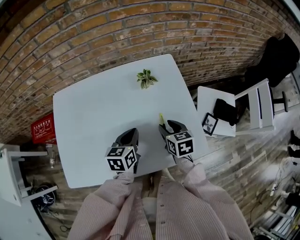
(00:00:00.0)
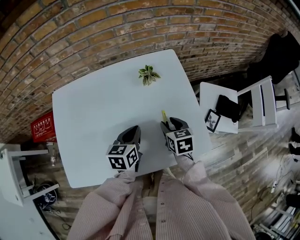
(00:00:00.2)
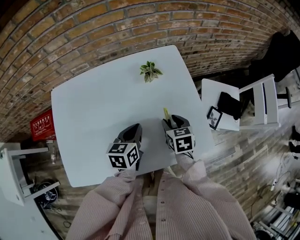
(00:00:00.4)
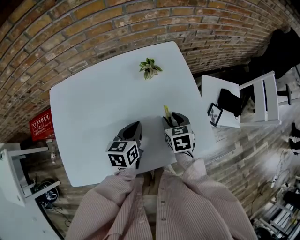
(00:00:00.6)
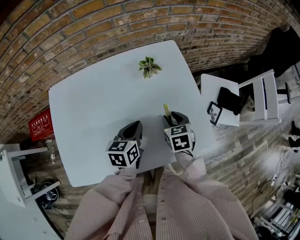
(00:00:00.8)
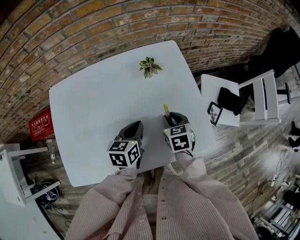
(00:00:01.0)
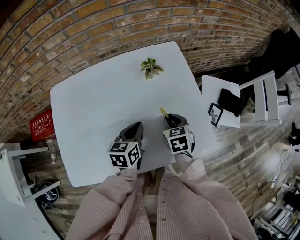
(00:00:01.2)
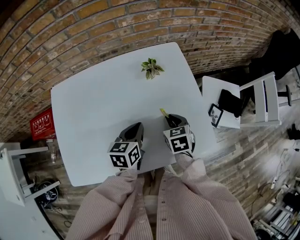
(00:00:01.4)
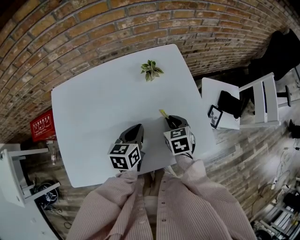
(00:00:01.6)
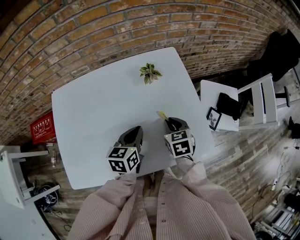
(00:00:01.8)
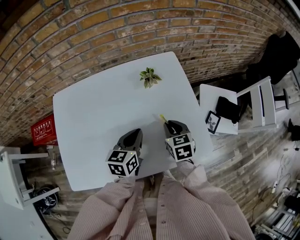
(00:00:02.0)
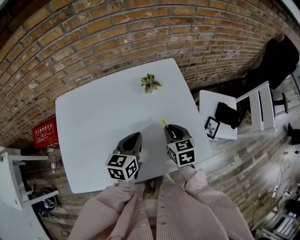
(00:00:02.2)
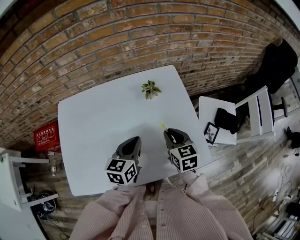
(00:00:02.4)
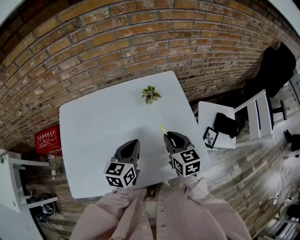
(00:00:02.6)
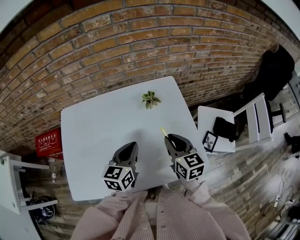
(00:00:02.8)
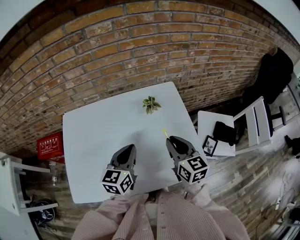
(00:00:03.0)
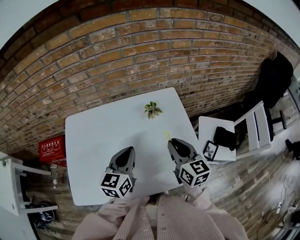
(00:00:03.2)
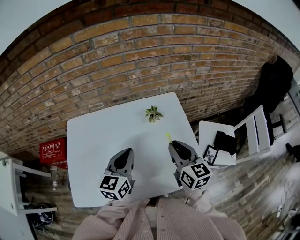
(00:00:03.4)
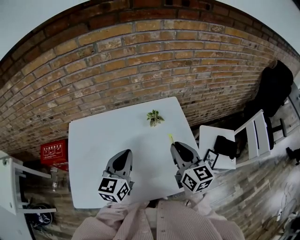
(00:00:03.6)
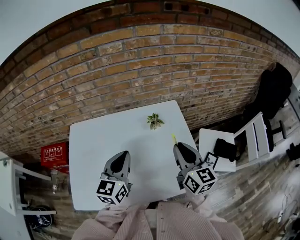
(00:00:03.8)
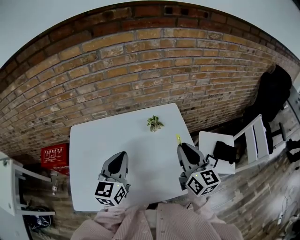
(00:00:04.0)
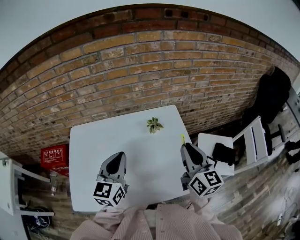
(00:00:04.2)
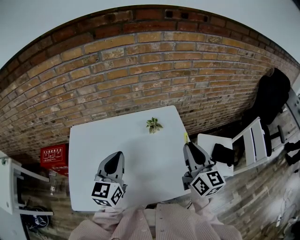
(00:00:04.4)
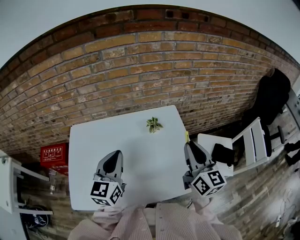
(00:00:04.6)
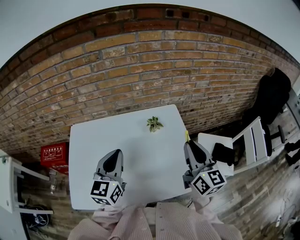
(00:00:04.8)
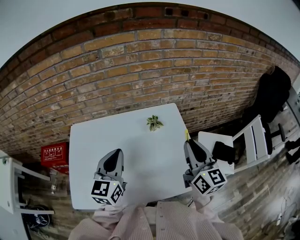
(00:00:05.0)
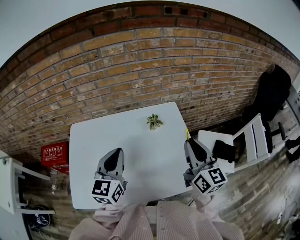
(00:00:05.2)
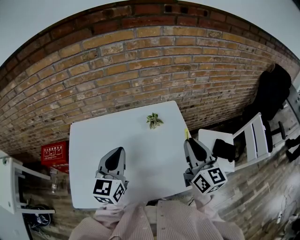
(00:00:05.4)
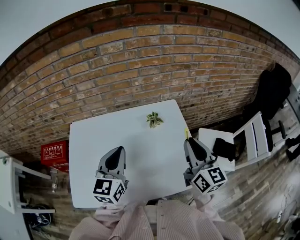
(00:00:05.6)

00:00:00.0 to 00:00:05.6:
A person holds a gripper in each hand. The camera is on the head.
00:00:00.0 to 00:00:01.4: The right gripper closes its fingers.
00:00:01.4 to 00:00:02.8: Both grippers travel together upward, approximately 10 cm. The right gripper swivels roughly 30 degrees.
00:00:02.8 to 00:00:04.2: The right gripper heads upward and to the right, covering some 15 cm, and rotates approximately 20 degrees. The left gripper heads upward, covering roughly 10 cm.
00:00:04.2 to 00:00:05.6: The grippers make only small movements.

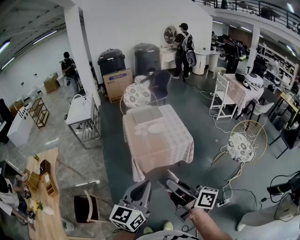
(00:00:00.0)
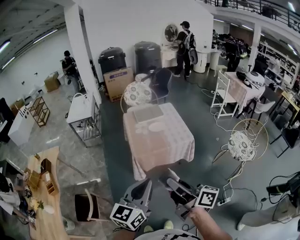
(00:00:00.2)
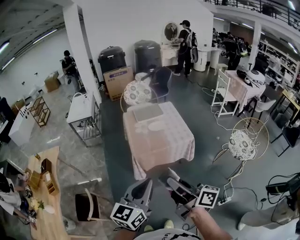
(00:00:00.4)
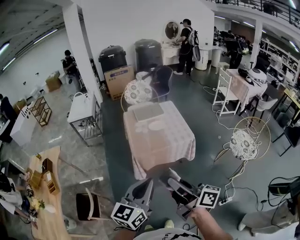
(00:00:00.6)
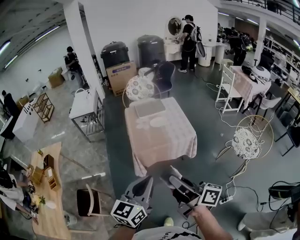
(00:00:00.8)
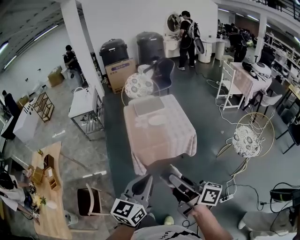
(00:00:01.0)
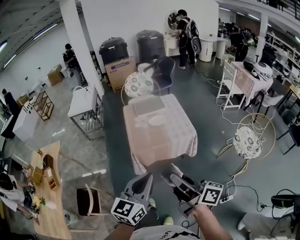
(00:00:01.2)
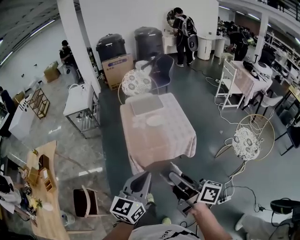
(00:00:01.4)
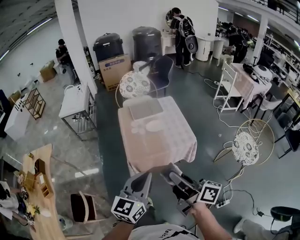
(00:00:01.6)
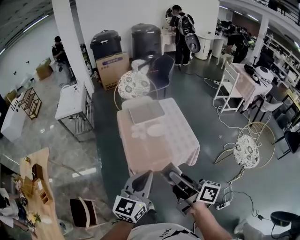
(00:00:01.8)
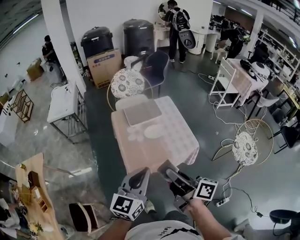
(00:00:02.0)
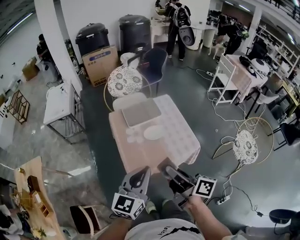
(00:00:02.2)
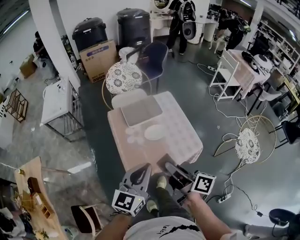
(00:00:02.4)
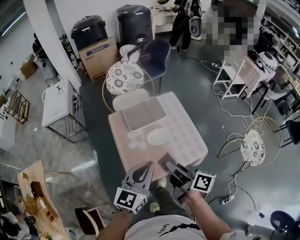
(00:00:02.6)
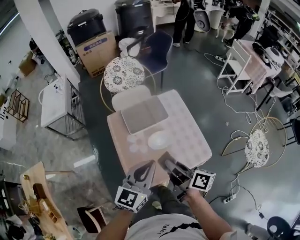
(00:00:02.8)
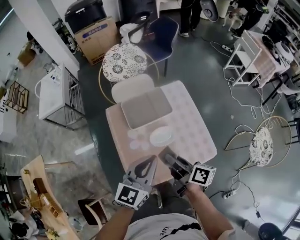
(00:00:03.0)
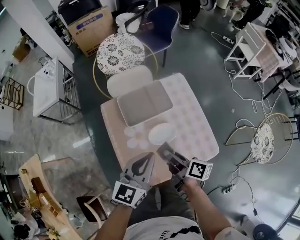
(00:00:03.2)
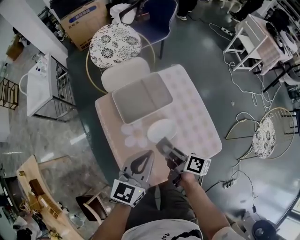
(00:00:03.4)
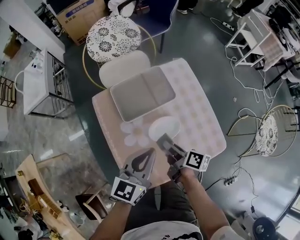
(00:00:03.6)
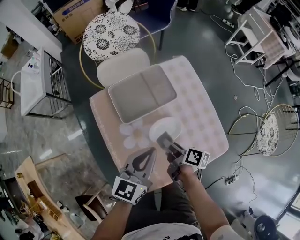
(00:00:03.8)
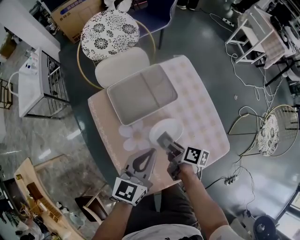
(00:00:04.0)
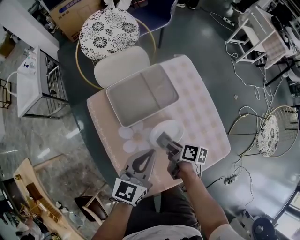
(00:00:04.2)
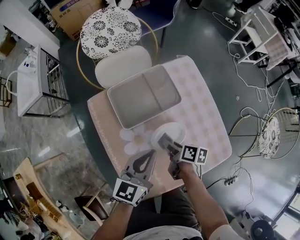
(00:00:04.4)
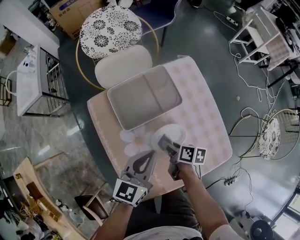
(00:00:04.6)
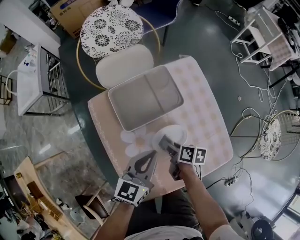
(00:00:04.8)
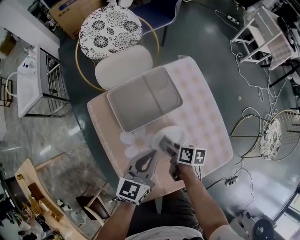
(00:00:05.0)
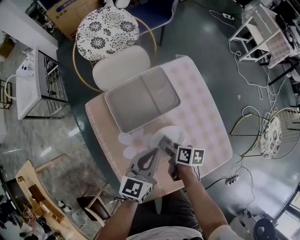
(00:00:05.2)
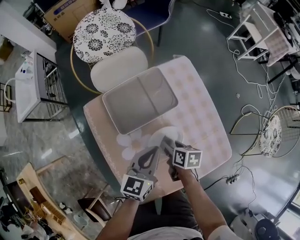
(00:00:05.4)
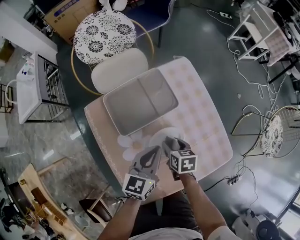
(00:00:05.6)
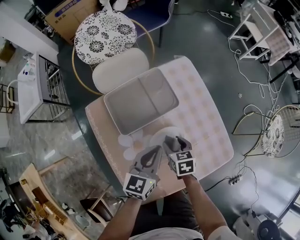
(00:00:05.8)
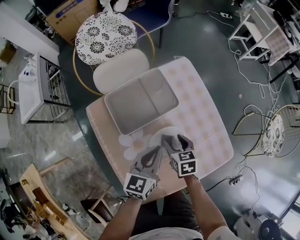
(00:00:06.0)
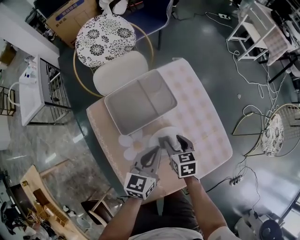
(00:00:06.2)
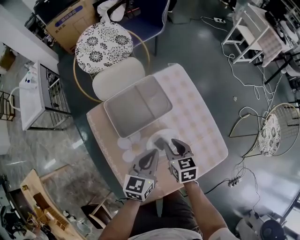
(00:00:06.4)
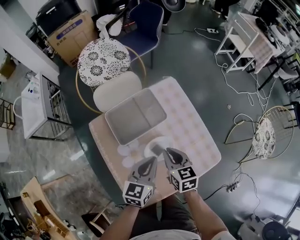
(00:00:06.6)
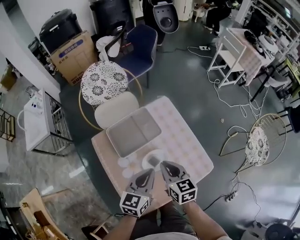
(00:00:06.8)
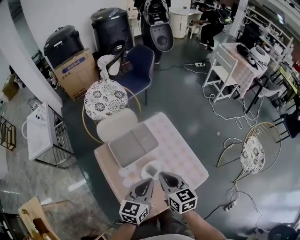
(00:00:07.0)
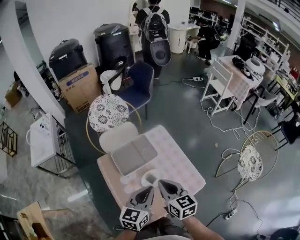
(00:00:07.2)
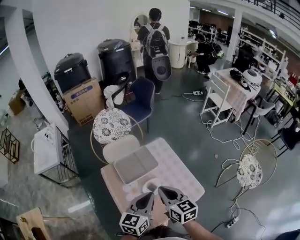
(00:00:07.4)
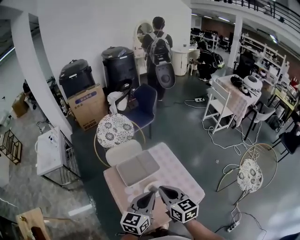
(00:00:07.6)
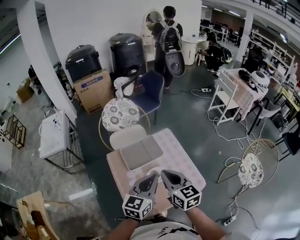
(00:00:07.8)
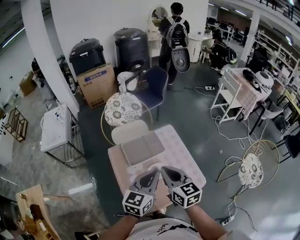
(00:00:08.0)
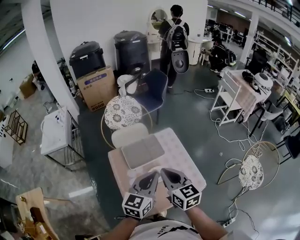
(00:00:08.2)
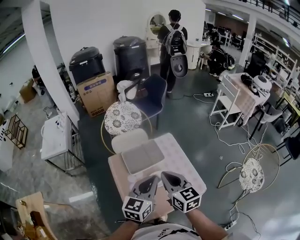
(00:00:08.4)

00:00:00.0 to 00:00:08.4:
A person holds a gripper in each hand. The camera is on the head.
00:00:00.0 to 00:00:01.4: The grippers both shift forward and to the right by about 10 cm.
00:00:01.4 to 00:00:02.8: The two grippers travel together, forward, some 40 cm.
00:00:02.8 to 00:00:04.2: Both grippers travel together downward and forward, about 30 cm. The right gripper turns by roughly 30 degrees.
00:00:04.2 to 00:00:05.6: The right gripper swivels about 40 degrees, and opens its fingers, while the left gripper heads downward, covering some 5 cm.
00:00:05.6 to 00:00:07.0: The right gripper travels upward by some 30 cm, turns by approximately 30 degrees, and closes up. The left gripper goes some 15 cm upward.
00:00:07.0 to 00:00:08.4: The grippers both shift upward by some 15 cm.

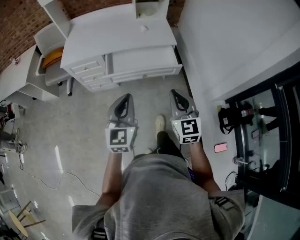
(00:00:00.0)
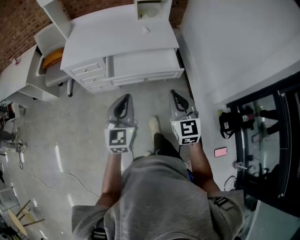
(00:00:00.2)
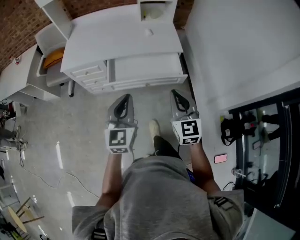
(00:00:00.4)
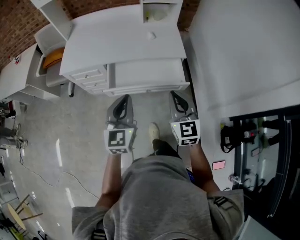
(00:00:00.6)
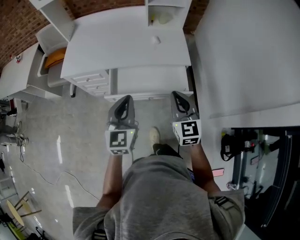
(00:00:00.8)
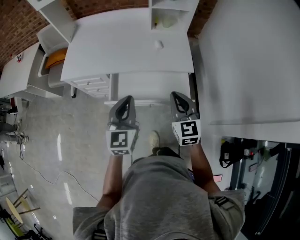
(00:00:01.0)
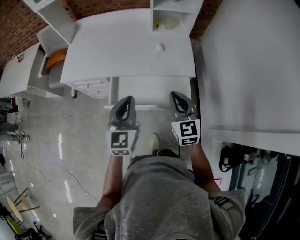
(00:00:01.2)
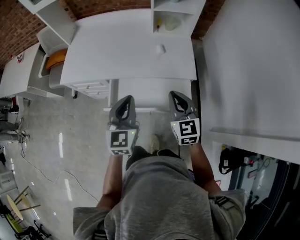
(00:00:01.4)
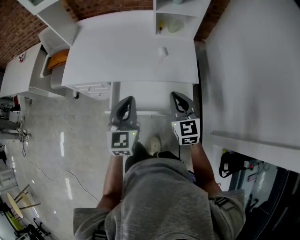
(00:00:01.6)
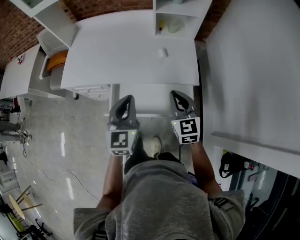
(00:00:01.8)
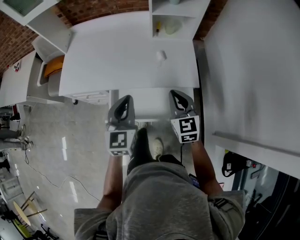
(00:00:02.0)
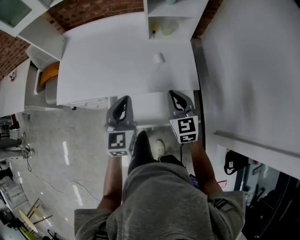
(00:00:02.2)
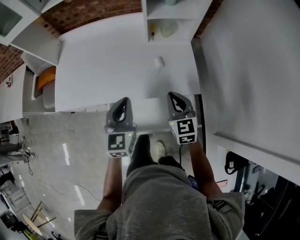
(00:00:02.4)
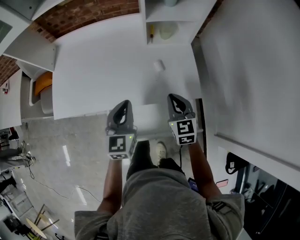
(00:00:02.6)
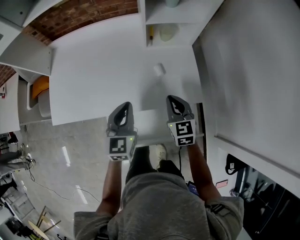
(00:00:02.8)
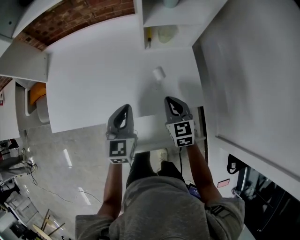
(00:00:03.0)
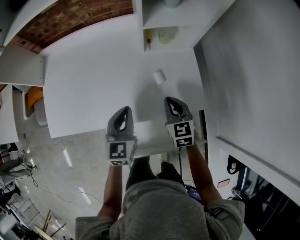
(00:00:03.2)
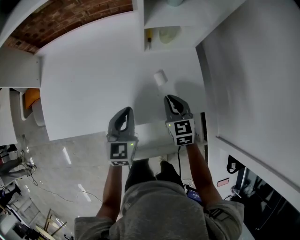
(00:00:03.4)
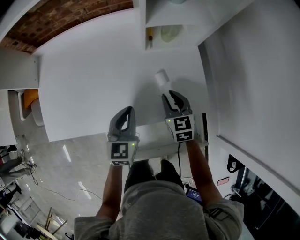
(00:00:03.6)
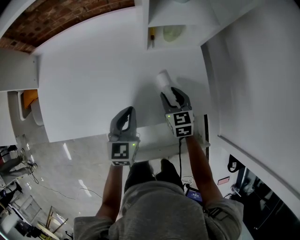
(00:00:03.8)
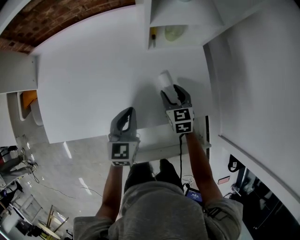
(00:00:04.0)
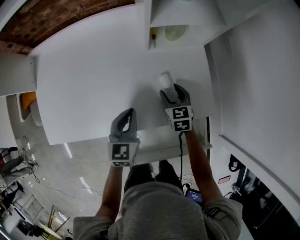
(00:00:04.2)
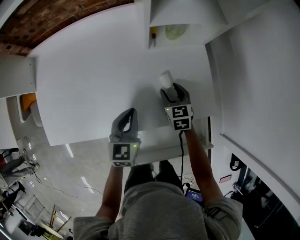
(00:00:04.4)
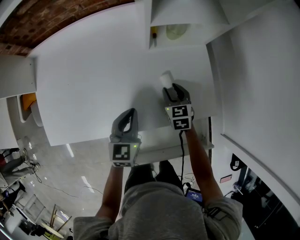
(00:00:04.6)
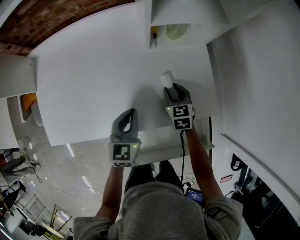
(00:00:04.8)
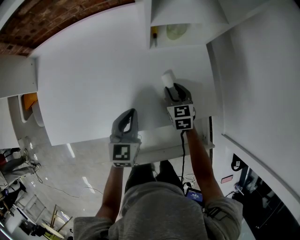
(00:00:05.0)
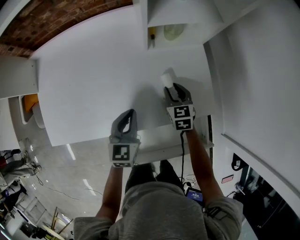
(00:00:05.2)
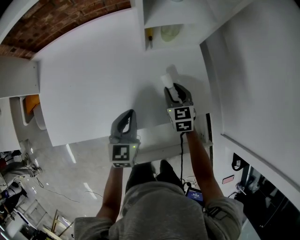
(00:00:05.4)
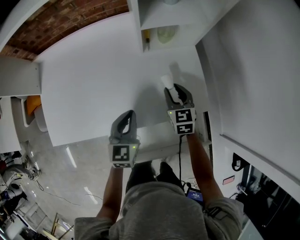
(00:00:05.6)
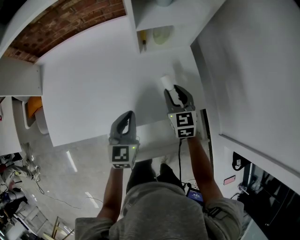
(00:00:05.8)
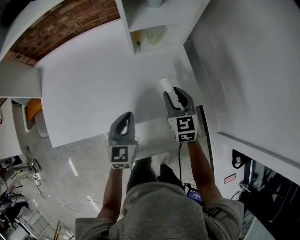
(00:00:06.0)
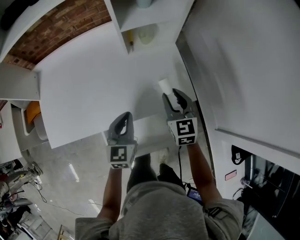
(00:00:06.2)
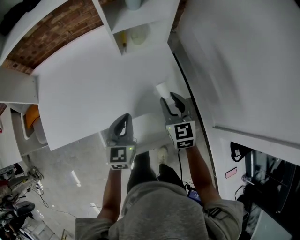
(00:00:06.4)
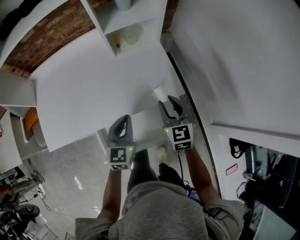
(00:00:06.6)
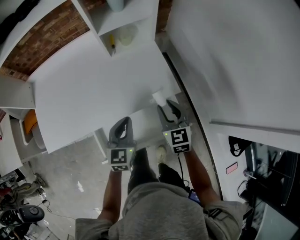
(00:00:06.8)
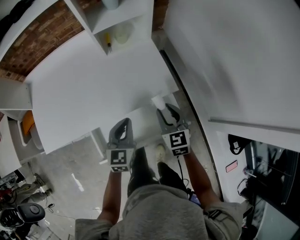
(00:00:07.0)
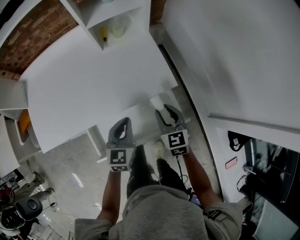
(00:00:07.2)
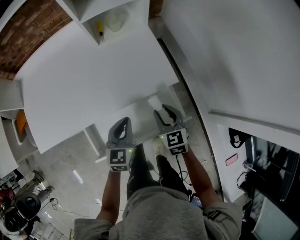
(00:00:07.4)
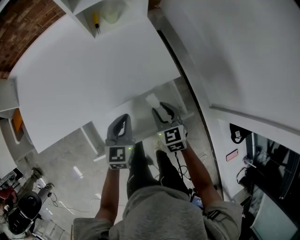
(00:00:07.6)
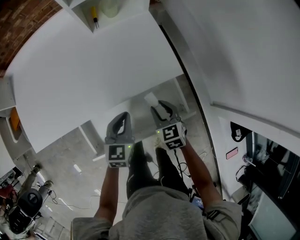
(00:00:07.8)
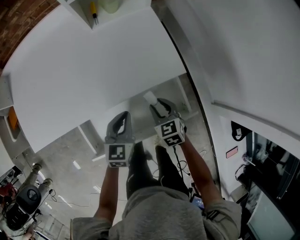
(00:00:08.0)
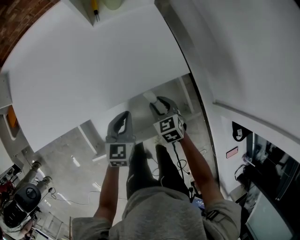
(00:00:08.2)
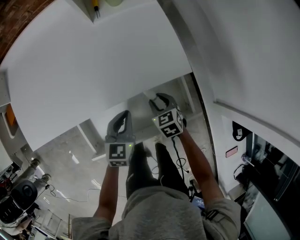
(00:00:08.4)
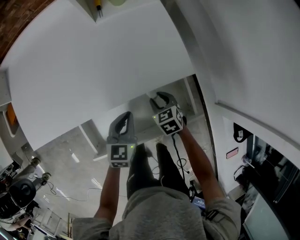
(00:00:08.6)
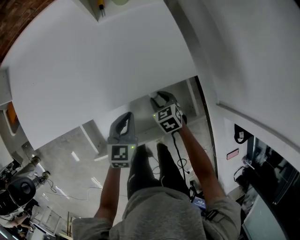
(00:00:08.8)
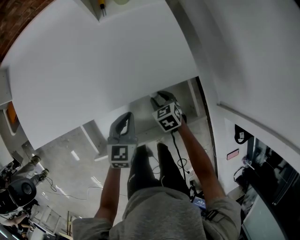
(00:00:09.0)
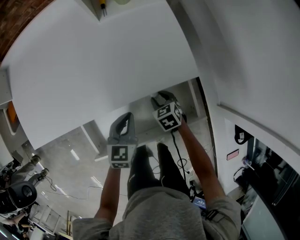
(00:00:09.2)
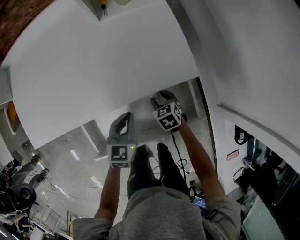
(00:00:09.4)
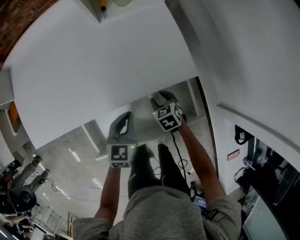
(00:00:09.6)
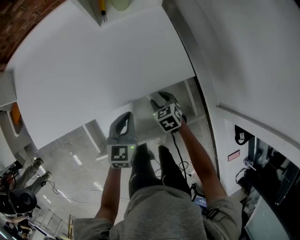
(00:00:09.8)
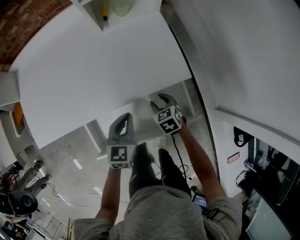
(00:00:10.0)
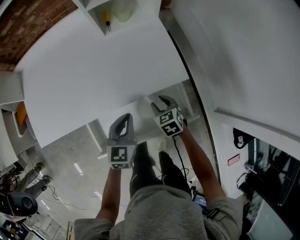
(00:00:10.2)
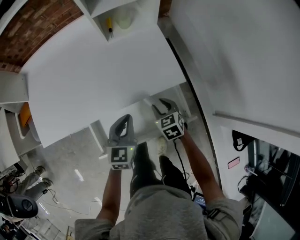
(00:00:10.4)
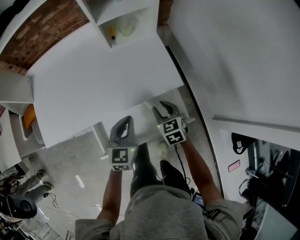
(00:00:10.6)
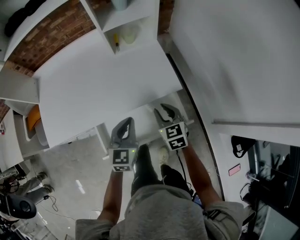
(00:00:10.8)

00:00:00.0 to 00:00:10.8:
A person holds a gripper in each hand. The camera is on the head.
00:00:00.0 to 00:00:01.6: The two grippers go about 35 cm forward.
00:00:01.6 to 00:00:03.0: The left gripper travels forward by roughly 25 cm; the right gripper moves forward and downward, approximately 25 cm.
00:00:03.0 to 00:00:04.6: The left gripper travels downward and forward by about 15 cm; the right gripper shifts about 20 cm downward and forward, and opens.
00:00:04.6 to 00:00:06.2: The right gripper is displaced upward and backward by roughly 20 cm. Meanwhile the left gripper heads upward, backward and to the right, covering some 15 cm.
00:00:06.2 to 00:00:07.8: The left gripper is displaced downward, to the right and backward by some 15 cm. The right gripper goes some 25 cm downward and backward.
00:00:07.8 to 00:00:09.2: The right gripper moves downward, some 10 cm, and rotates approximately 20 degrees; the left gripper shifts roughly 5 cm downward.
00:00:09.2 to 00:00:10.8: Both grippers move upward, some 20 cm. The right gripper rotates about 30 degrees.
